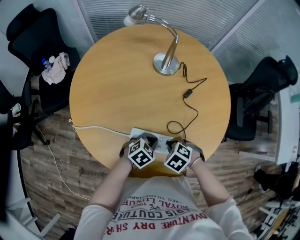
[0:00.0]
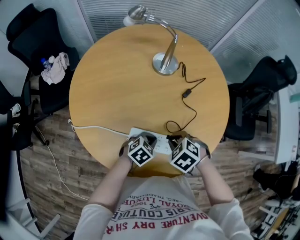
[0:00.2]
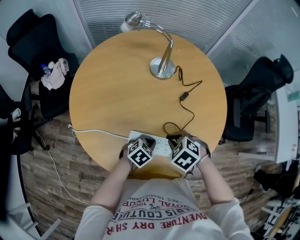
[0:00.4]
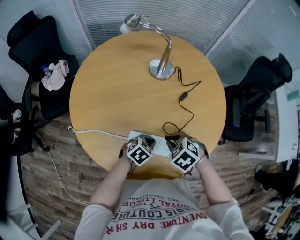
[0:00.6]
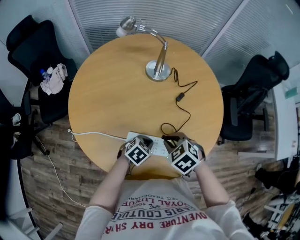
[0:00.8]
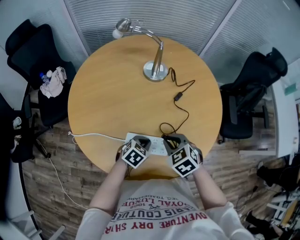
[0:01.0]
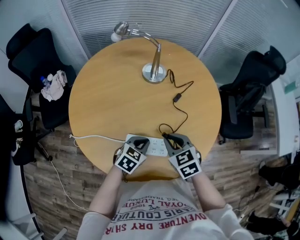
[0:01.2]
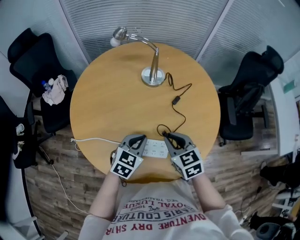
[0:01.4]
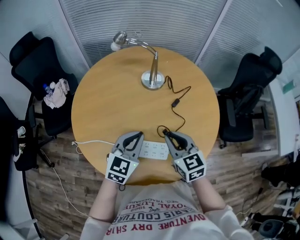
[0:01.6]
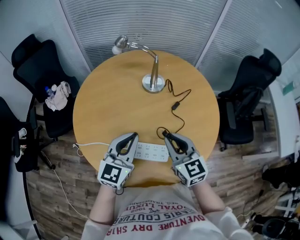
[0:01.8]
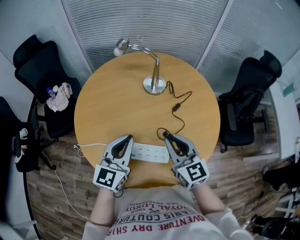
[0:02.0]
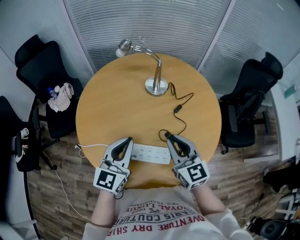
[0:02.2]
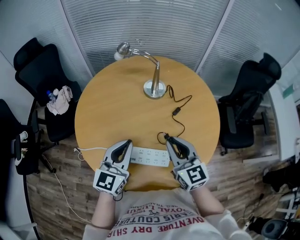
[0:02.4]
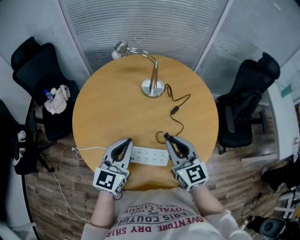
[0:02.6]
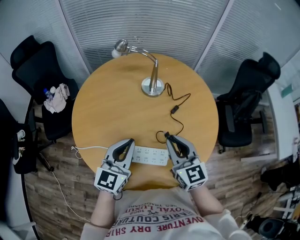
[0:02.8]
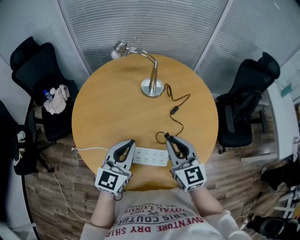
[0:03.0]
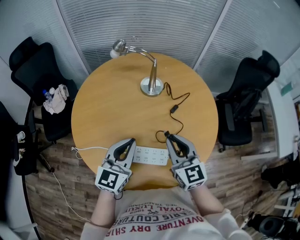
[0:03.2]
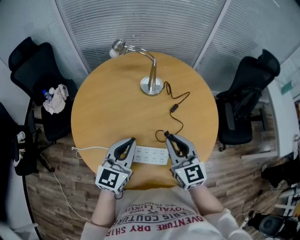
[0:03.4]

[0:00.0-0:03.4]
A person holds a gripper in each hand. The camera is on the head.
0:00.0 to 0:01.6: The two grippers go approximately 20 cm upward. The right gripper tilts its fingers about 60 degrees upward, while the left gripper tilts its fingers approximately 30 degrees upward.

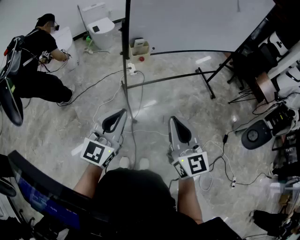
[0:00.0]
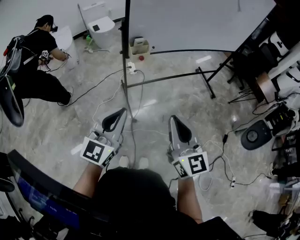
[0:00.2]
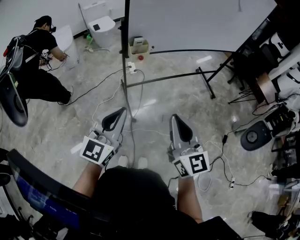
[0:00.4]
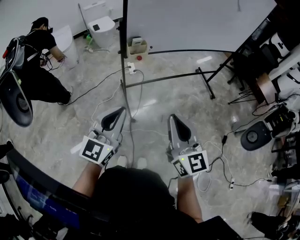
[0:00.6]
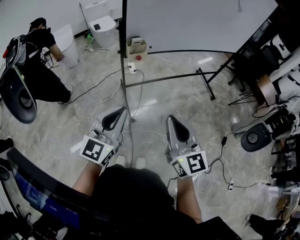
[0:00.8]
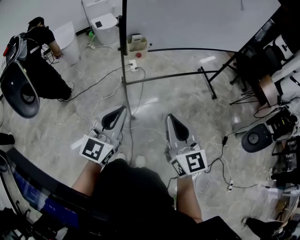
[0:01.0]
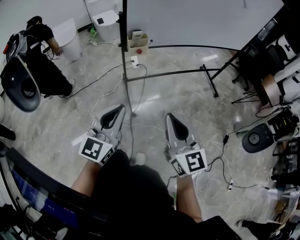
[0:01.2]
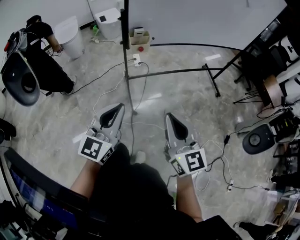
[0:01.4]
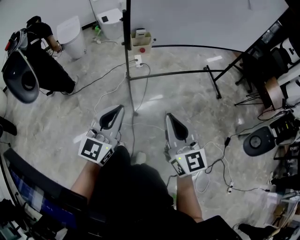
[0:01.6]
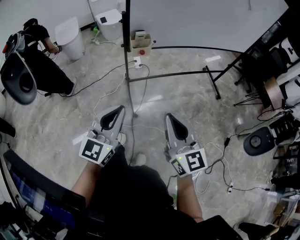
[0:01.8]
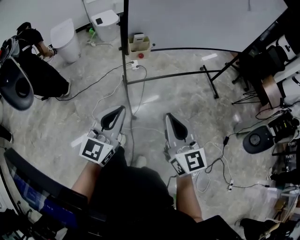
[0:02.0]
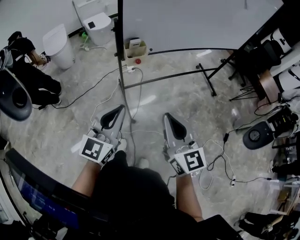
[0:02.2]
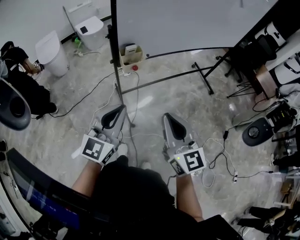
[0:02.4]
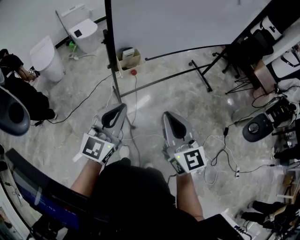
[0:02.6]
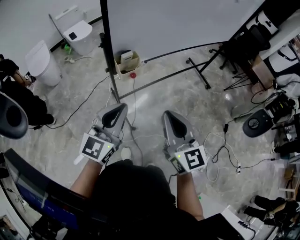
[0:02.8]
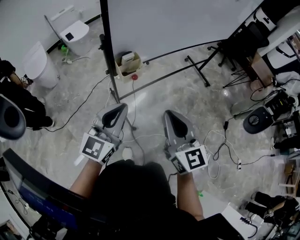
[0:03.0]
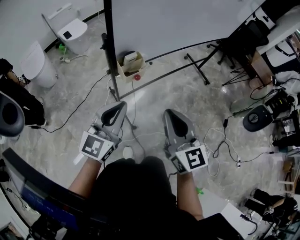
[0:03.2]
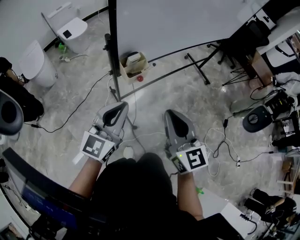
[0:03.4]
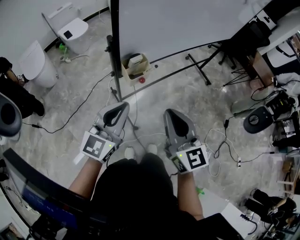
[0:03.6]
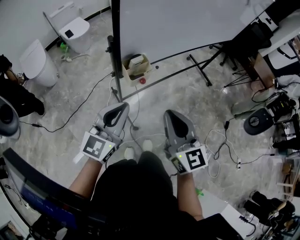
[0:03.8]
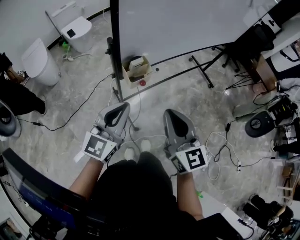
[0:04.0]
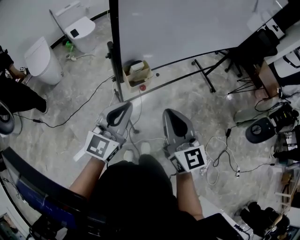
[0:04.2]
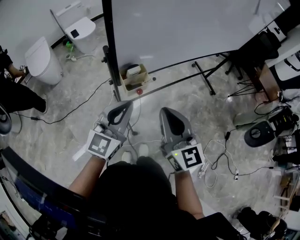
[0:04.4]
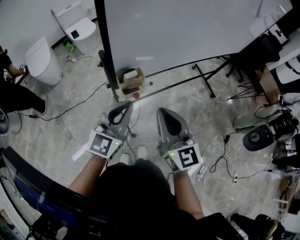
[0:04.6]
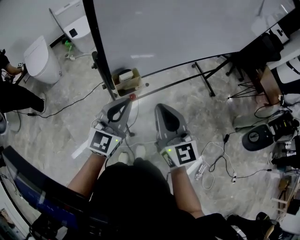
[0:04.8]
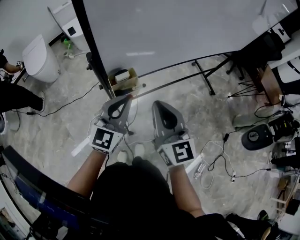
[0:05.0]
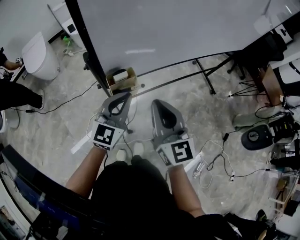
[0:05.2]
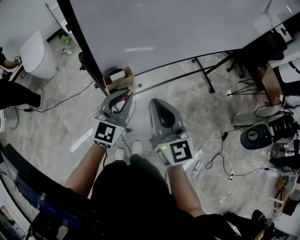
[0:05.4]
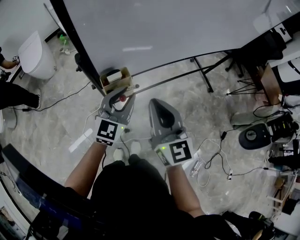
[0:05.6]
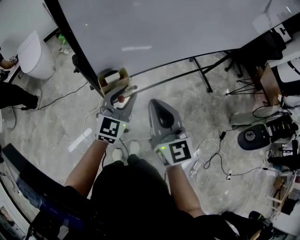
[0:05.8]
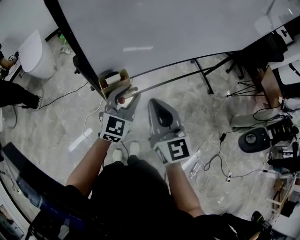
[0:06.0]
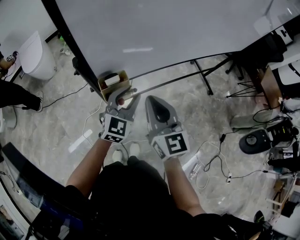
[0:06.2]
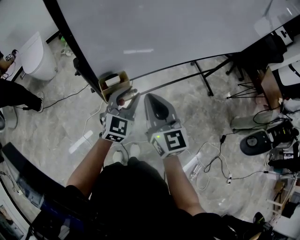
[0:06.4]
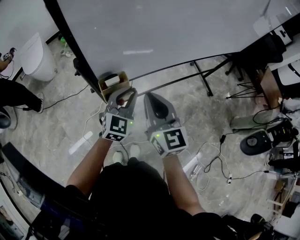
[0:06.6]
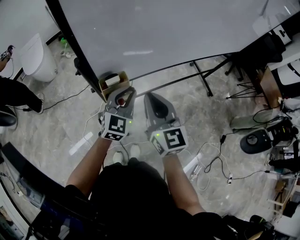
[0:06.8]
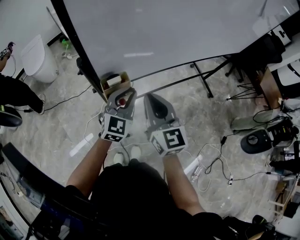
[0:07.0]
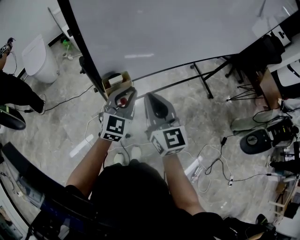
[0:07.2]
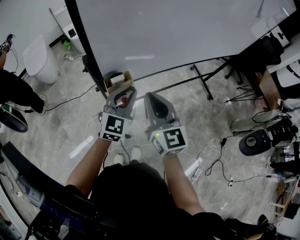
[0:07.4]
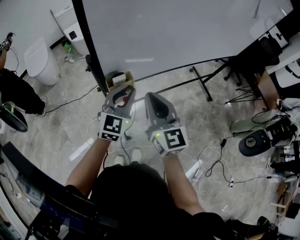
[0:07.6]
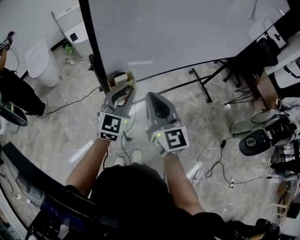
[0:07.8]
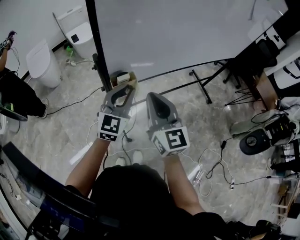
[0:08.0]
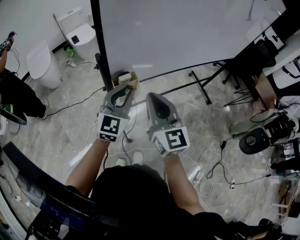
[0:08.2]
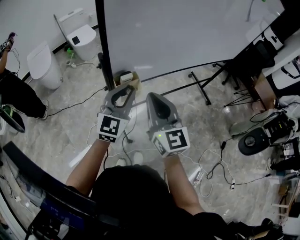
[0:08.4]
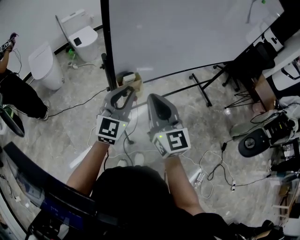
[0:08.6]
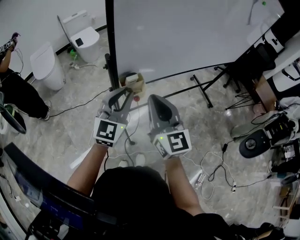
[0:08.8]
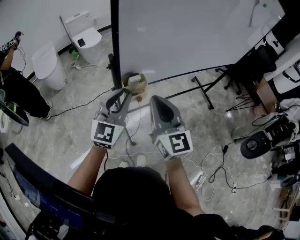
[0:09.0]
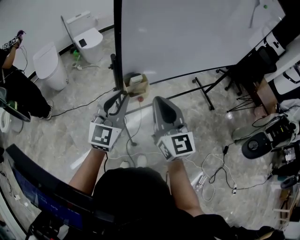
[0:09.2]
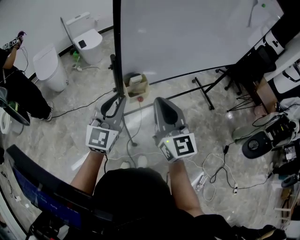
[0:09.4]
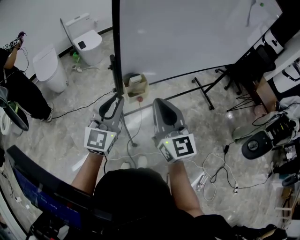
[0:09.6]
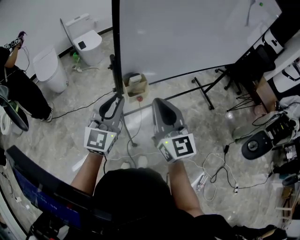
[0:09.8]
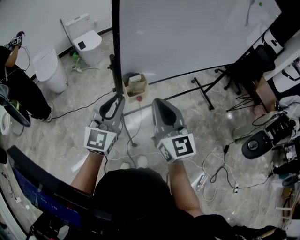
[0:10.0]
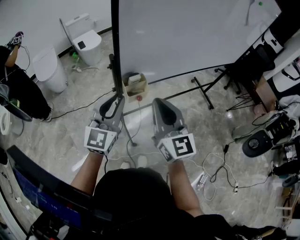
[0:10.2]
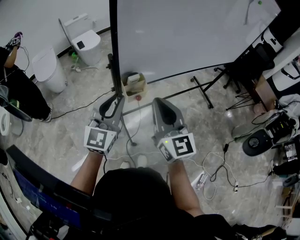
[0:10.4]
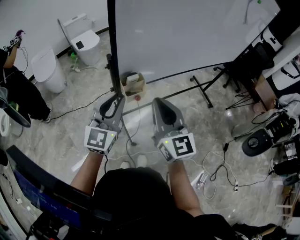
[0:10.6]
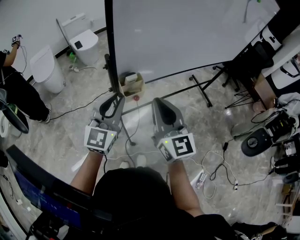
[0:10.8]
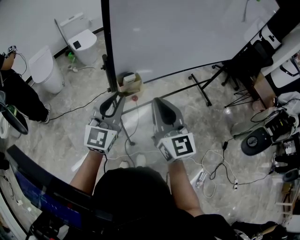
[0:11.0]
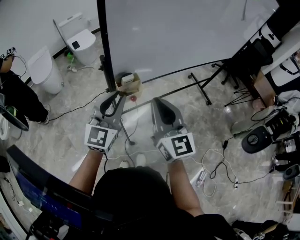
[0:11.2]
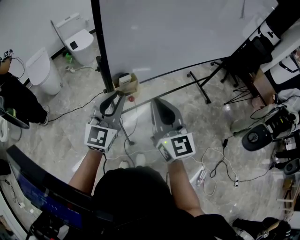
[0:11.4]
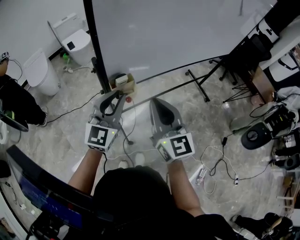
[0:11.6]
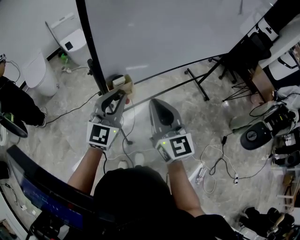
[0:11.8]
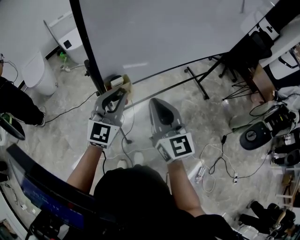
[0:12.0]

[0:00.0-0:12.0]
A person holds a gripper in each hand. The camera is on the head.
0:00.0 to 0:01.6: The grippers move only a little.
0:01.6 to 0:03.0: The right gripper shifts about 20 cm forward and to the left, while the left gripper goes some 20 cm forward, and swivels roughly 20 degrees.
0:03.0 to 0:04.4: The two grippers go approximately 10 cm forward.
0:04.4 to 0:06.0: The left gripper travels forward, downward and to the right by approximately 20 cm, and opens its fingers, while the right gripper travels forward by about 10 cm.
0:06.0 to 0:07.6: The left gripper changes place by approximately 5 cm.
0:07.6 to 0:09.0: The left gripper heads backward, to the left and upward, covering some 15 cm; the right gripper shifts approximately 5 cm backward.
0:09.0 to 0:10.4: The grippers stay close to where they were, moving slightly.
0:10.4 to 0:12.0: The left gripper moves forward and to the right, about 10 cm; the right gripper goes some 5 cm forward.

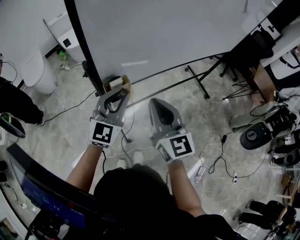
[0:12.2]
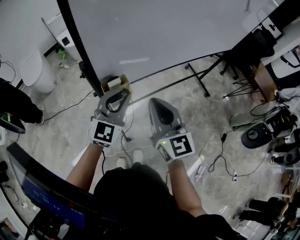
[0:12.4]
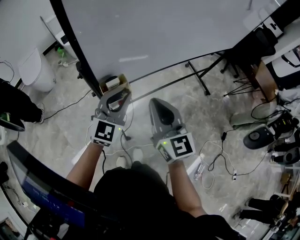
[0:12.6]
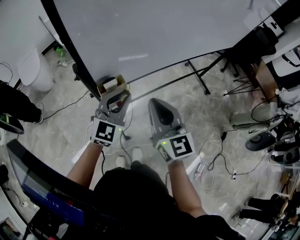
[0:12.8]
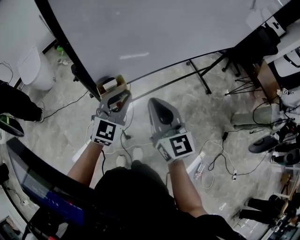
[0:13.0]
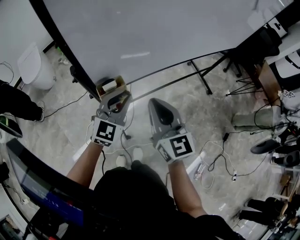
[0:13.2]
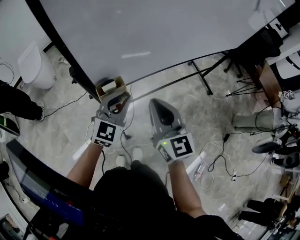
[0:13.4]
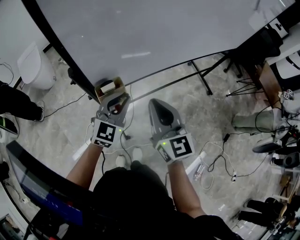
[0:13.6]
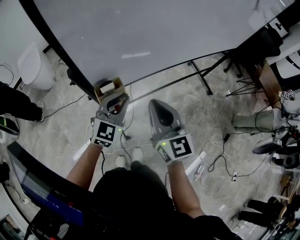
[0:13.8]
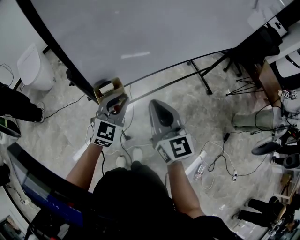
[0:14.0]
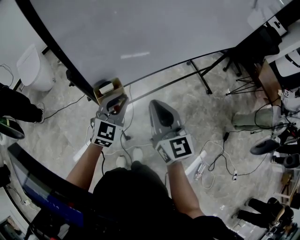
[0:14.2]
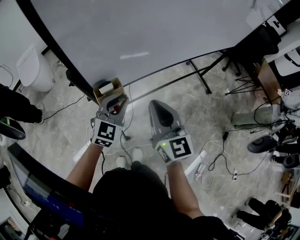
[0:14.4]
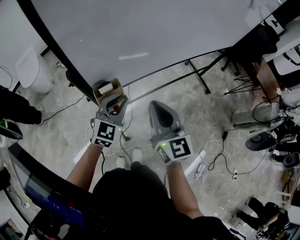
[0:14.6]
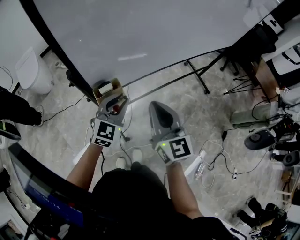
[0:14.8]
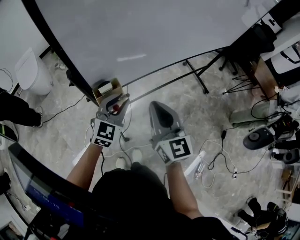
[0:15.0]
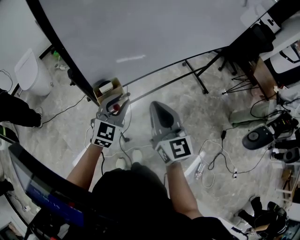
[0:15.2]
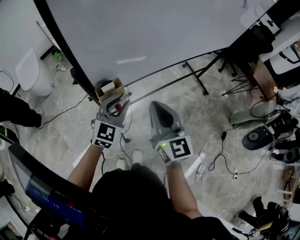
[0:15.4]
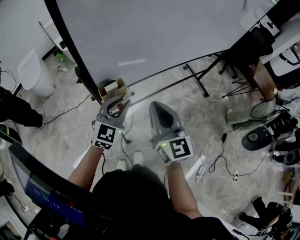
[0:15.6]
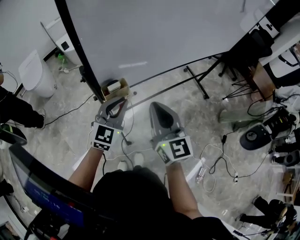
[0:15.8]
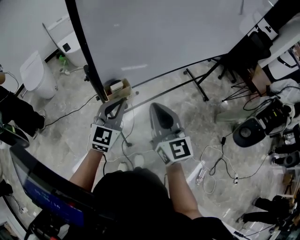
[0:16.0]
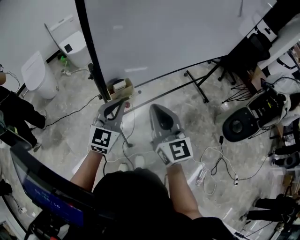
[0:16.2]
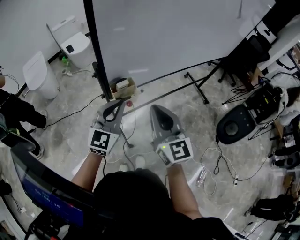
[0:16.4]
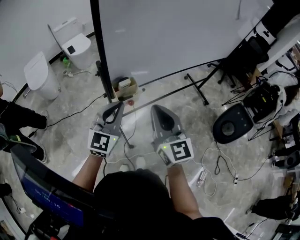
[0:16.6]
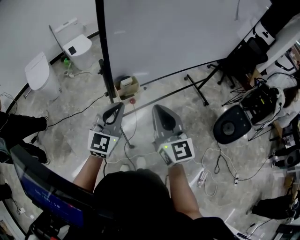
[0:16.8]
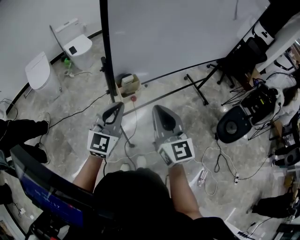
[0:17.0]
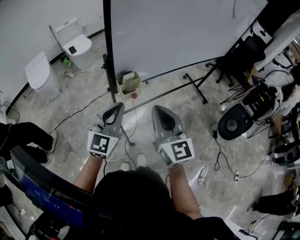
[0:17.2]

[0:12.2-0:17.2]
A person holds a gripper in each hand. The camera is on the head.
0:12.2 to 0:13.8: The left gripper goes about 10 cm downward, while the right gripper ends up roughly 5 cm from where it was.
0:13.8 to 0:15.6: The grippers move only a little.
0:15.6 to 0:17.2: The left gripper travels backward, to the left and upward by about 15 cm, and closes up. The right gripper moves backward and to the left, roughly 15 cm.

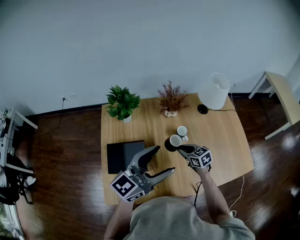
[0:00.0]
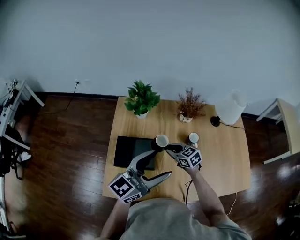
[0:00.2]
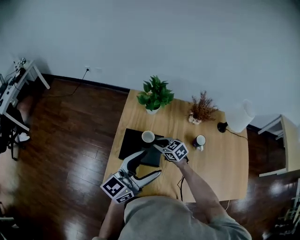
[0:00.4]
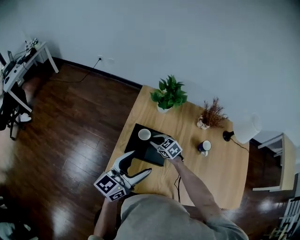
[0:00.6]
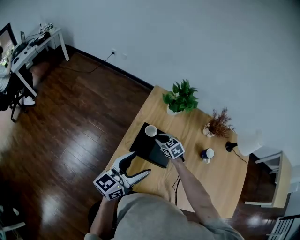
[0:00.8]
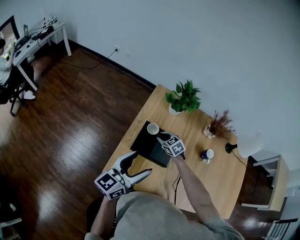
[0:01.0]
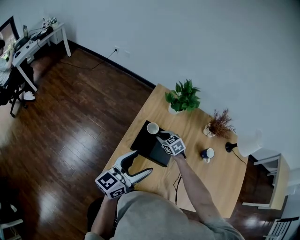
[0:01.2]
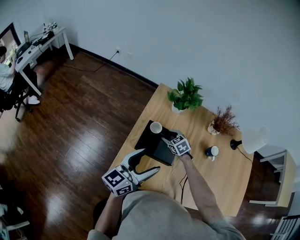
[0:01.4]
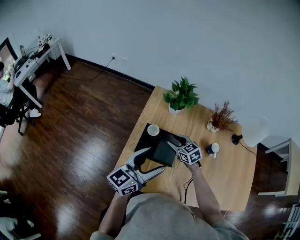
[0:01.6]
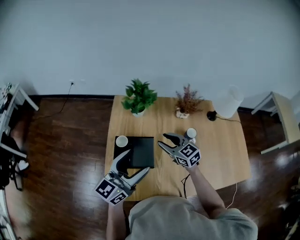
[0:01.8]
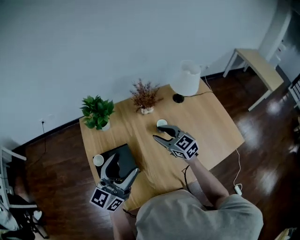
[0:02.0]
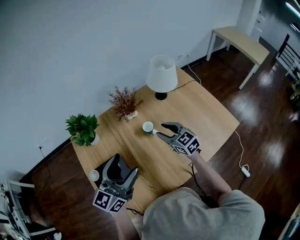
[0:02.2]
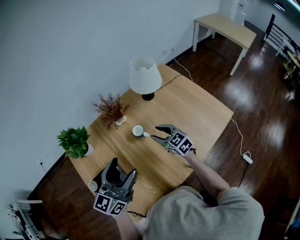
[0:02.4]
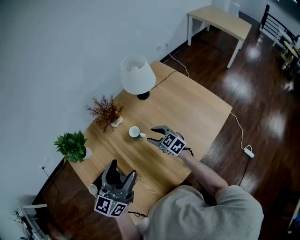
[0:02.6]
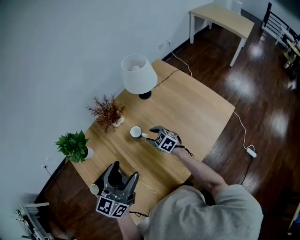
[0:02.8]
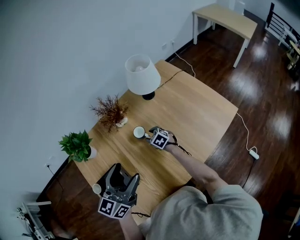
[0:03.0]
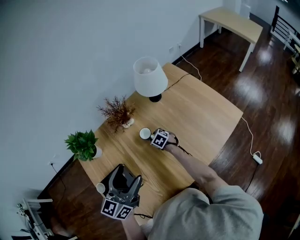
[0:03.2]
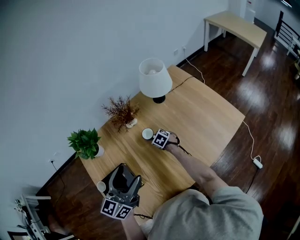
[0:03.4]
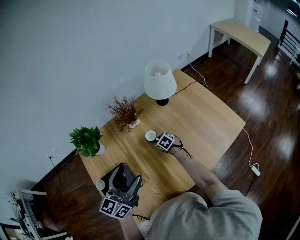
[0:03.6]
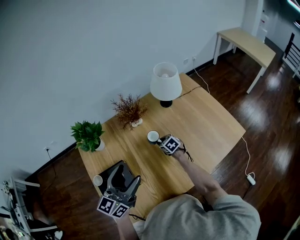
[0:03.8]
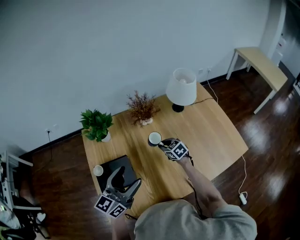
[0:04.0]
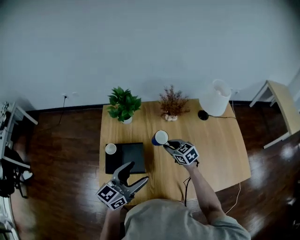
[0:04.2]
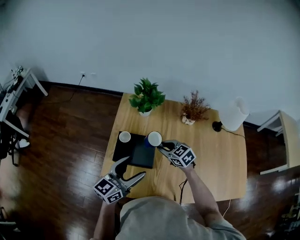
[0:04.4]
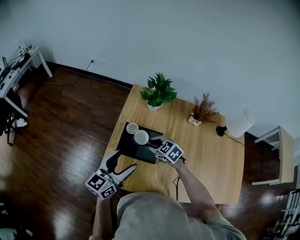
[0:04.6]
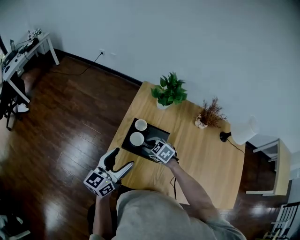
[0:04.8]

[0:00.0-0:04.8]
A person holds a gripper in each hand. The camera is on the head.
0:00.0 to 0:01.6: The right gripper reaches about 10 cm downward, then returns, changes its angle by some 20 degrees, and opens up, while the left gripper changes place by about 25 cm, and rotates roughly 20 degrees.
0:01.6 to 0:03.2: The left gripper moves about 25 cm, and turns by some 30 degrees, while the right gripper changes place by approximately 35 cm, and changes its angle by roughly 40 degrees.
0:03.2 to 0:04.8: The left gripper shifts by some 35 cm, and changes its angle by roughly 50 degrees. The right gripper shifts by approximately 40 cm, and rolls counterclockwise, seen from behind, by some 50 degrees.
